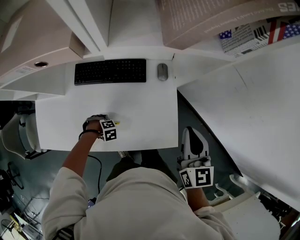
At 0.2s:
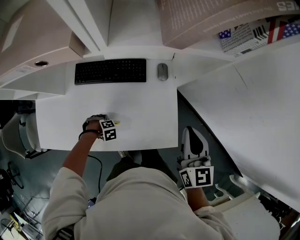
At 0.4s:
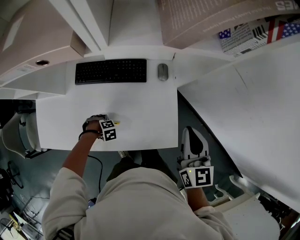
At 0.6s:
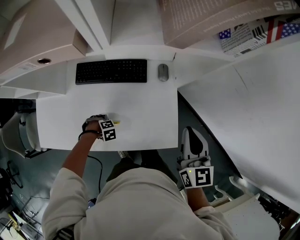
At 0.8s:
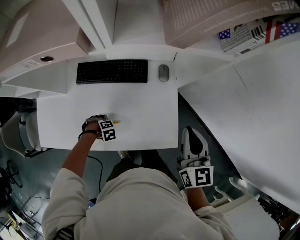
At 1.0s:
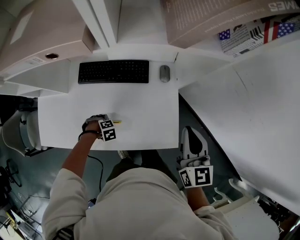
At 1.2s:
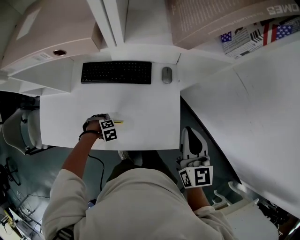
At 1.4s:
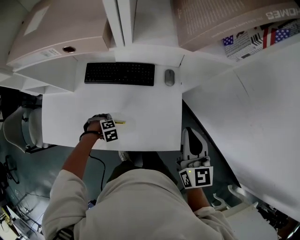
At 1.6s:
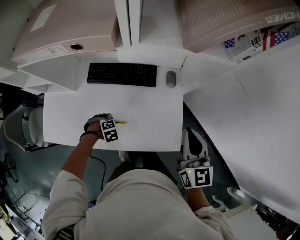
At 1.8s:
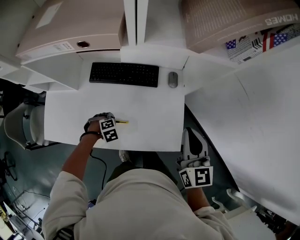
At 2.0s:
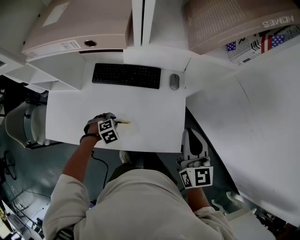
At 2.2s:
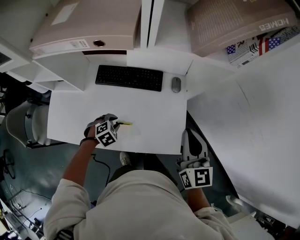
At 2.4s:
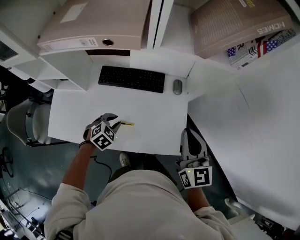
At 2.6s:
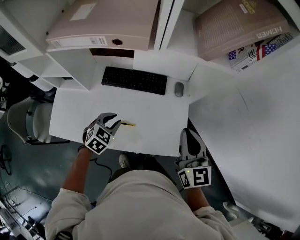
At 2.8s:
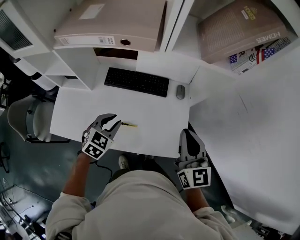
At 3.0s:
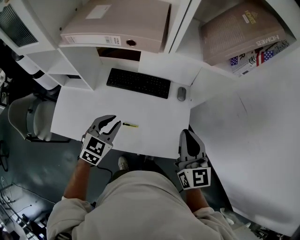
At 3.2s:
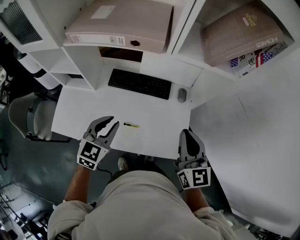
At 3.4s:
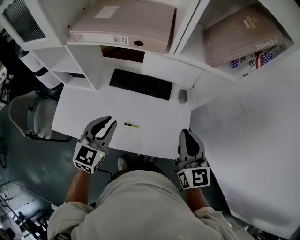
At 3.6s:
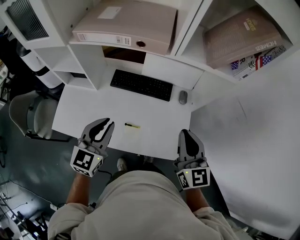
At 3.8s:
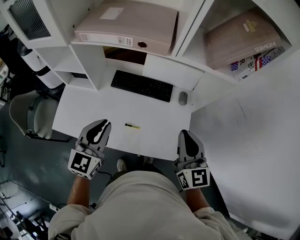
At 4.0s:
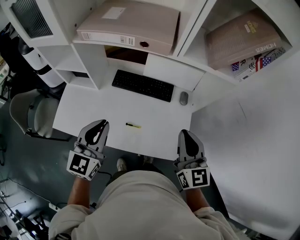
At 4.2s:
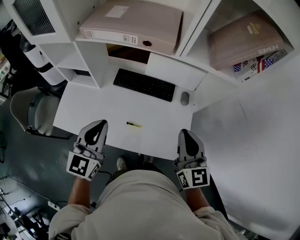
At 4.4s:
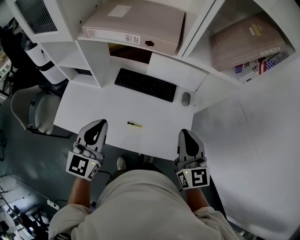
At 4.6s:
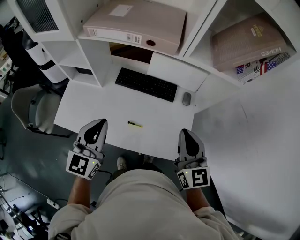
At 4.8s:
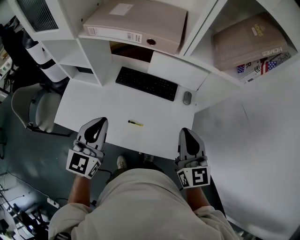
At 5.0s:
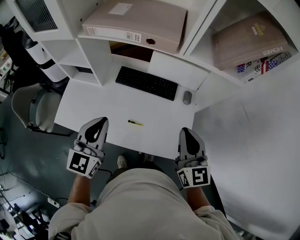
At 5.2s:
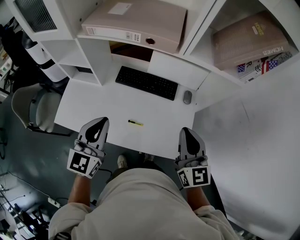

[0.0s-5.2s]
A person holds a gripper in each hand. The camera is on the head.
0.0s to 1.8s: The right gripper changes place by roughly 5 cm; the left gripper is displaced upward by approximately 10 cm.
1.8s to 3.4s: The right gripper changes place by about 10 cm; the left gripper moves upward, roughly 35 cm, and tips its fingers upward by roughly 70 degrees.
3.4s to 5.2s: The left gripper heads upward, covering some 5 cm.

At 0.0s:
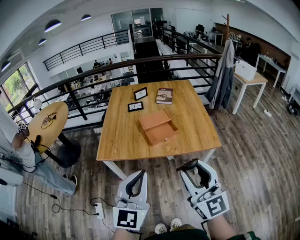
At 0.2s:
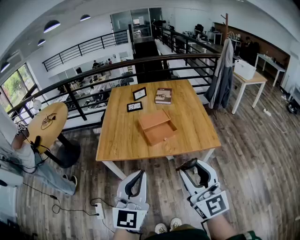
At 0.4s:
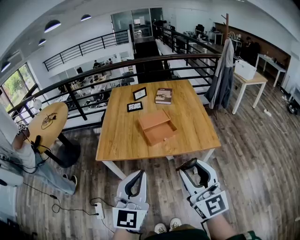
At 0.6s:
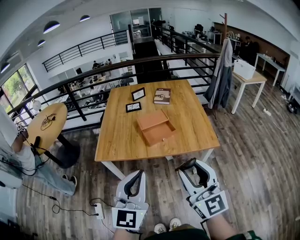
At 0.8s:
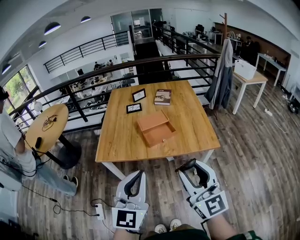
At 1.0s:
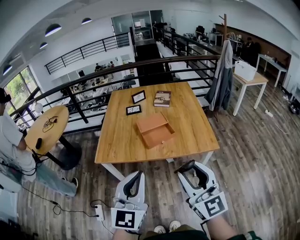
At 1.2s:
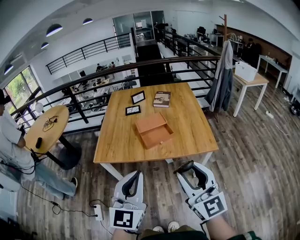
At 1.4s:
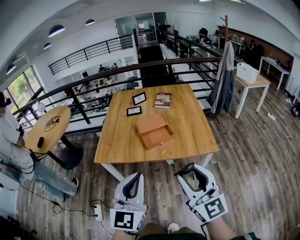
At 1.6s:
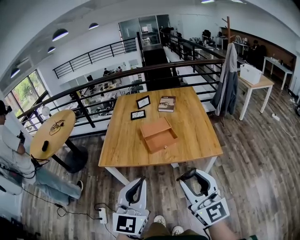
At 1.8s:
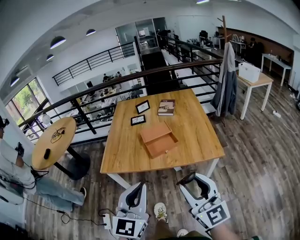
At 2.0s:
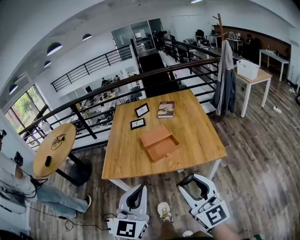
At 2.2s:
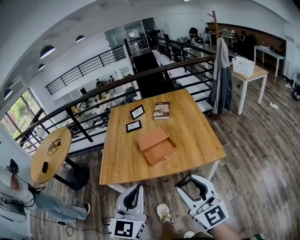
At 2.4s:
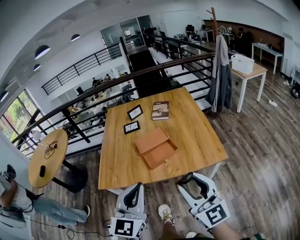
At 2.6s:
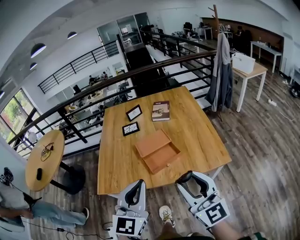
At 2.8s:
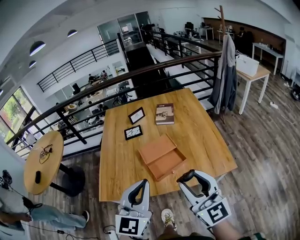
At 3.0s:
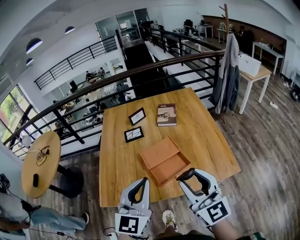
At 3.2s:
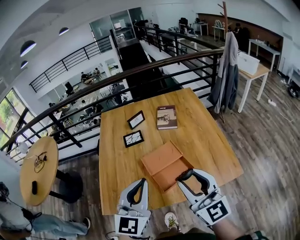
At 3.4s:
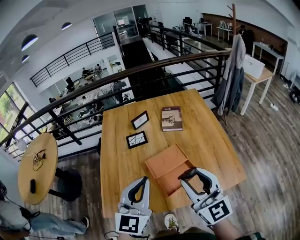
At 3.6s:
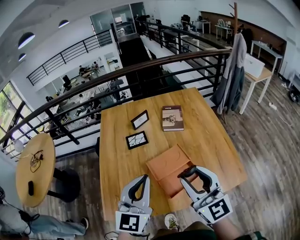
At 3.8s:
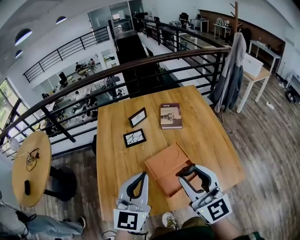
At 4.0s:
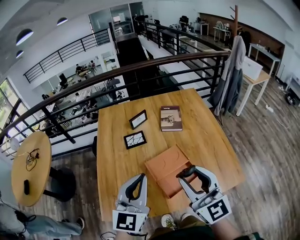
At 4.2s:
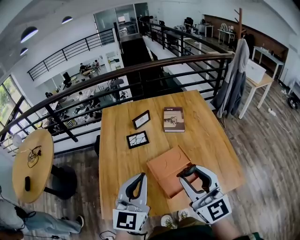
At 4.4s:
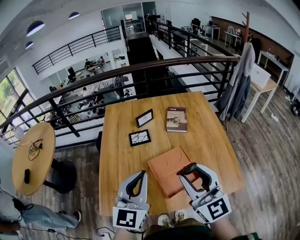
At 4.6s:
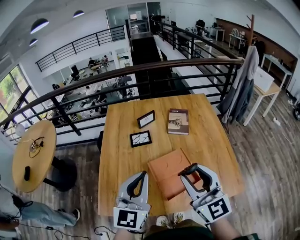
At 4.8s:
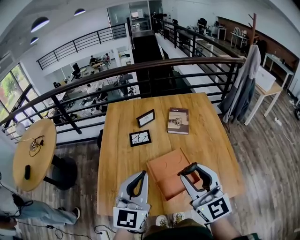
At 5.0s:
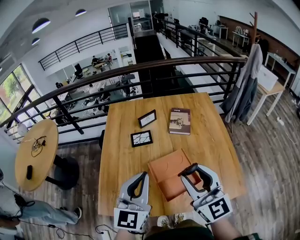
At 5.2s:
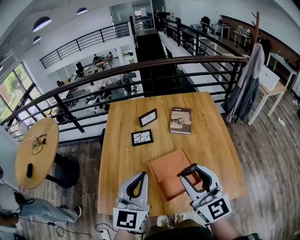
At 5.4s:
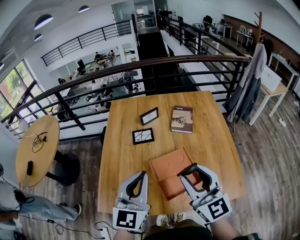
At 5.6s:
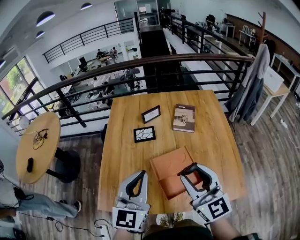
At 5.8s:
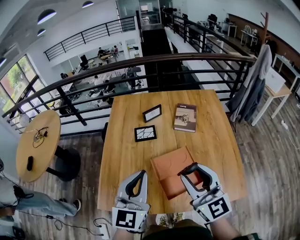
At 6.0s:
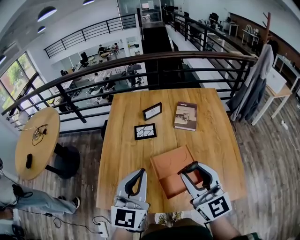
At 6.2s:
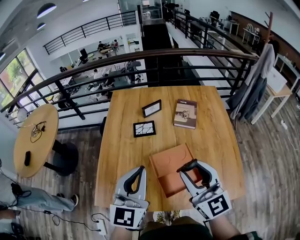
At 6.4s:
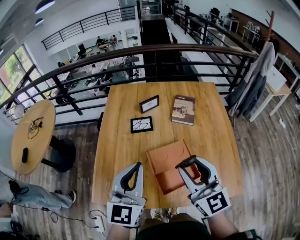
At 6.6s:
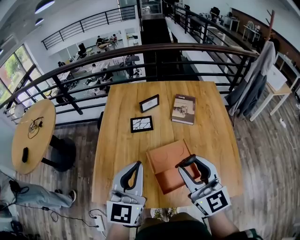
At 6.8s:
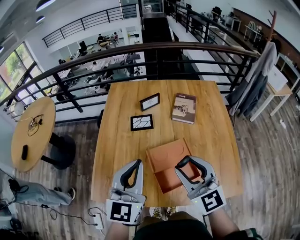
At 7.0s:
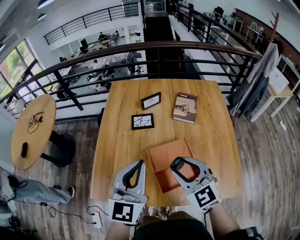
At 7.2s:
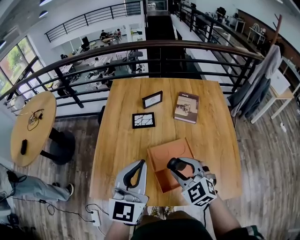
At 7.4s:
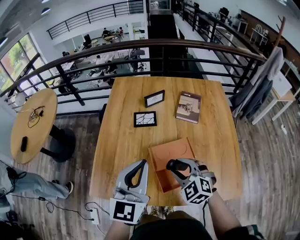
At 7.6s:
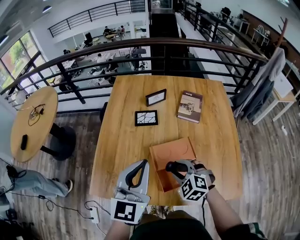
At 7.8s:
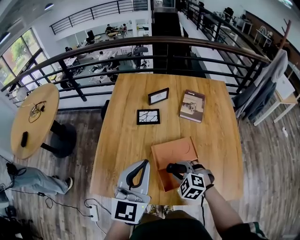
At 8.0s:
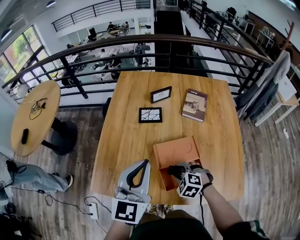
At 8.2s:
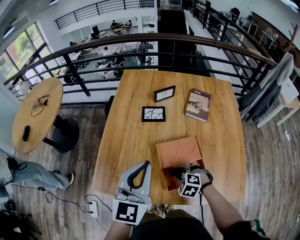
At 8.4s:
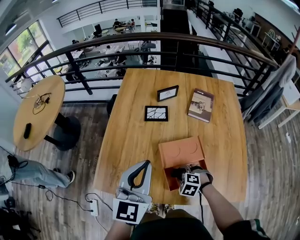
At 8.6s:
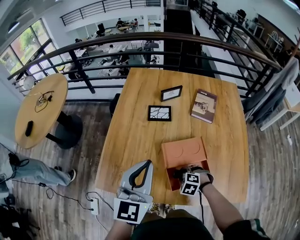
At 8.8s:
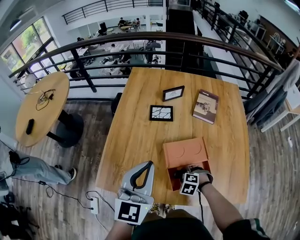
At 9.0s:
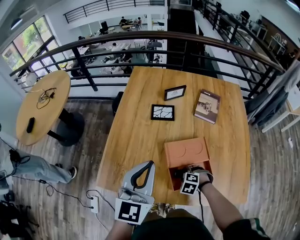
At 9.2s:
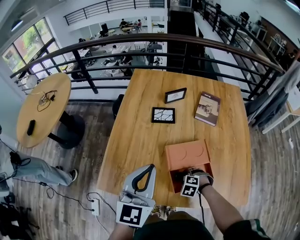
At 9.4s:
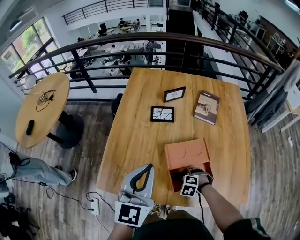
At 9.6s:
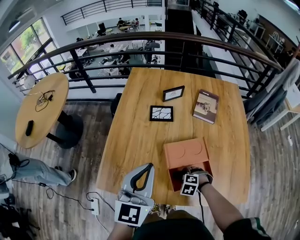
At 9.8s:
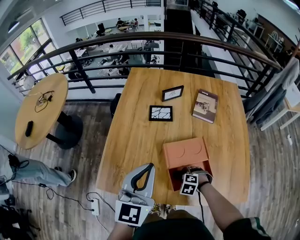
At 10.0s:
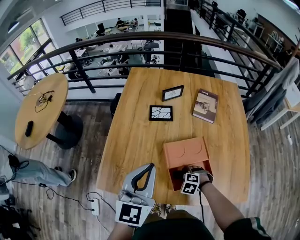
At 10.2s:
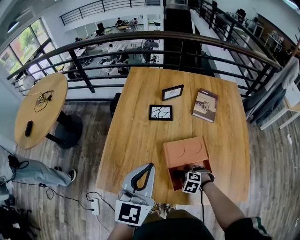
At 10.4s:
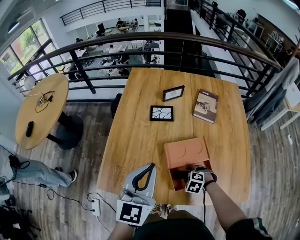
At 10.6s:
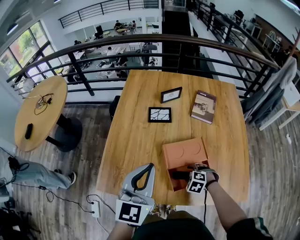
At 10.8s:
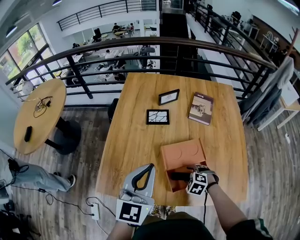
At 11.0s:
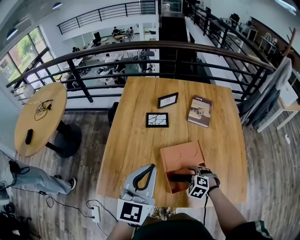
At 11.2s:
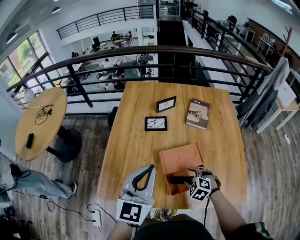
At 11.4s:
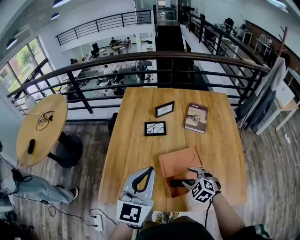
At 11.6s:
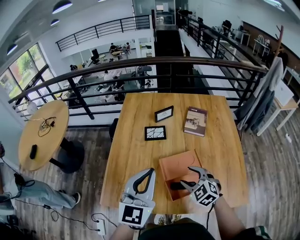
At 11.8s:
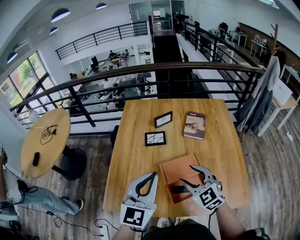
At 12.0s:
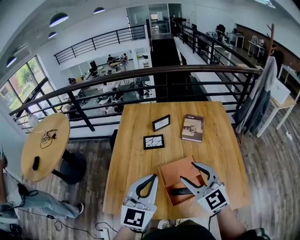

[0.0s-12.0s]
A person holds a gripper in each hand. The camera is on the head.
0.0s to 1.6s: The right gripper goes about 5 cm to the right.
1.6s to 3.0s: The grippers both shift forward by about 30 cm.
3.0s to 4.4s: Both grippers travel together forward and to the left, roughly 15 cm.
4.4s to 6.0s: The right gripper ends up approximately 5 cm from where it was.
6.0s to 7.6s: The right gripper is displaced downward by roughly 20 cm, and tilts its fingers roughly 50 degrees downward.
7.6s to 9.0s: The right gripper shifts approximately 15 cm downward, and turns by roughly 30 degrees.
9.0s to 10.4s: The grippers move only a little.
10.4s to 12.0s: The right gripper is displaced upward by roughly 35 cm, and tilts its fingers about 70 degrees upward, while the left gripper travels upward by approximately 5 cm.

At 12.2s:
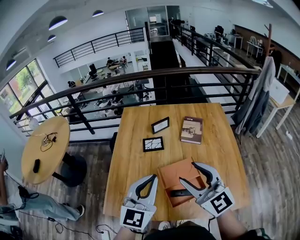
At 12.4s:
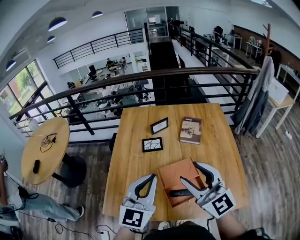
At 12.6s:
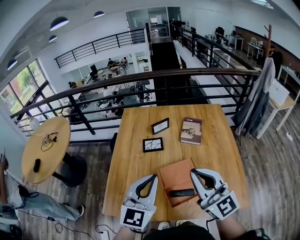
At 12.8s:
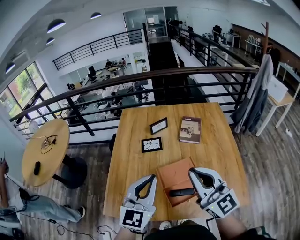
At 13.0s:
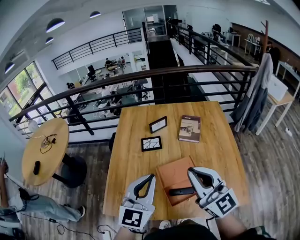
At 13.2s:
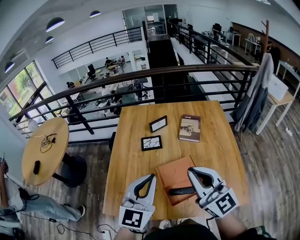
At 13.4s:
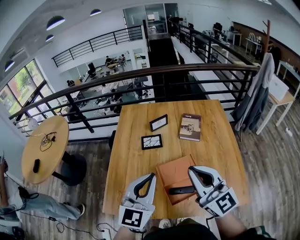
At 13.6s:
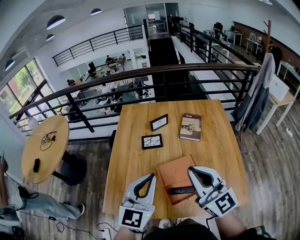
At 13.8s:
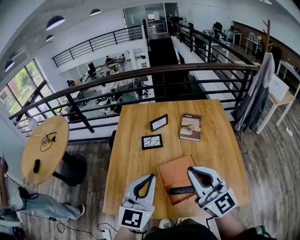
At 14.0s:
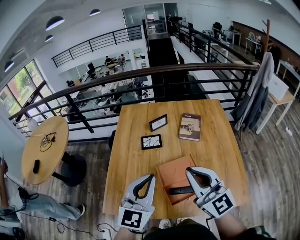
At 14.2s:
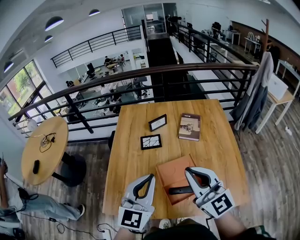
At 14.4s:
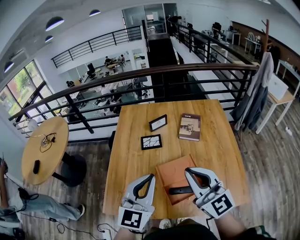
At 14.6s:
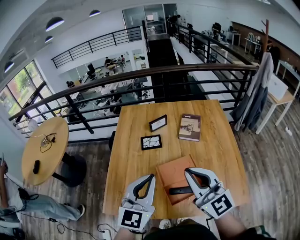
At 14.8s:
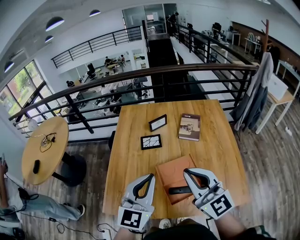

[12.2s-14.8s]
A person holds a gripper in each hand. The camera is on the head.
12.2s to 13.4s: The right gripper closes.
13.4s to 14.8s: The grippers move only a little.

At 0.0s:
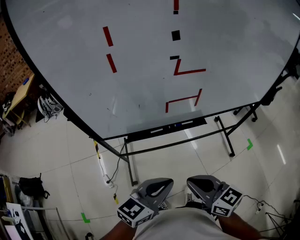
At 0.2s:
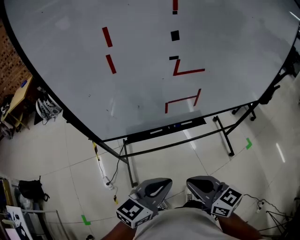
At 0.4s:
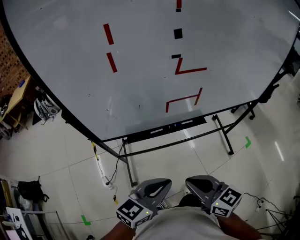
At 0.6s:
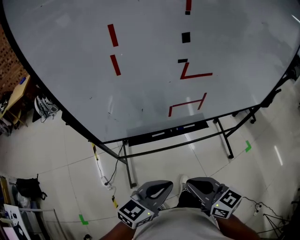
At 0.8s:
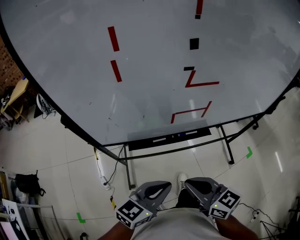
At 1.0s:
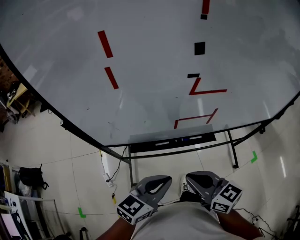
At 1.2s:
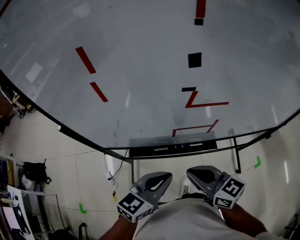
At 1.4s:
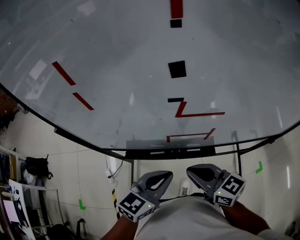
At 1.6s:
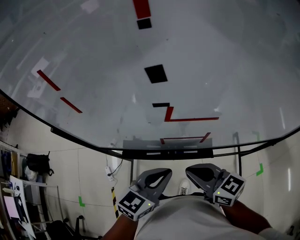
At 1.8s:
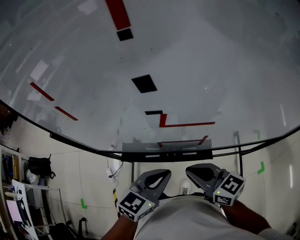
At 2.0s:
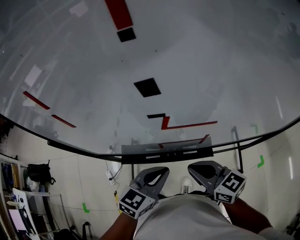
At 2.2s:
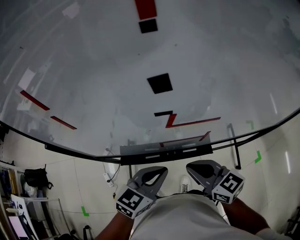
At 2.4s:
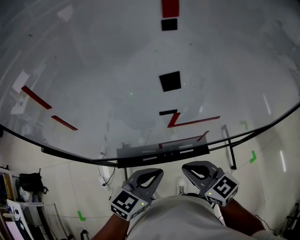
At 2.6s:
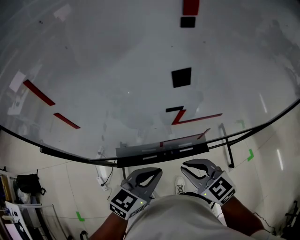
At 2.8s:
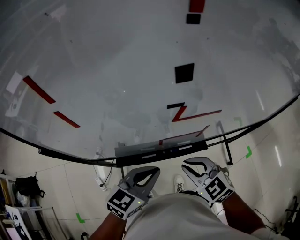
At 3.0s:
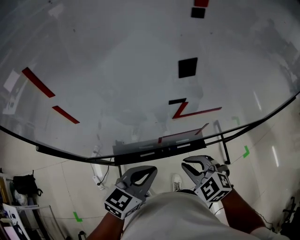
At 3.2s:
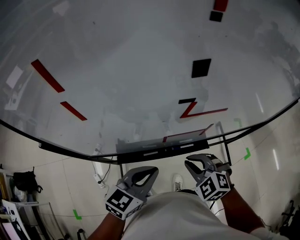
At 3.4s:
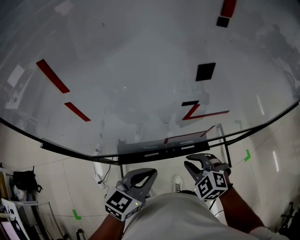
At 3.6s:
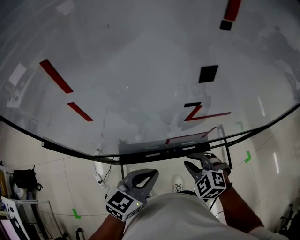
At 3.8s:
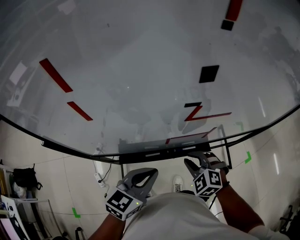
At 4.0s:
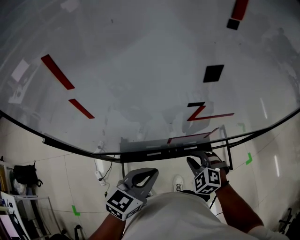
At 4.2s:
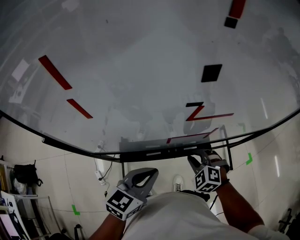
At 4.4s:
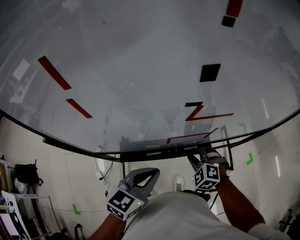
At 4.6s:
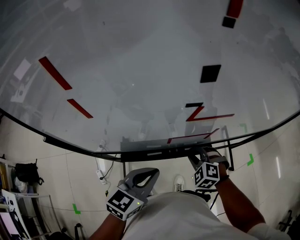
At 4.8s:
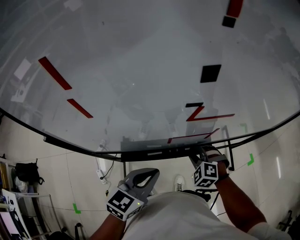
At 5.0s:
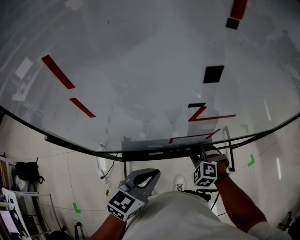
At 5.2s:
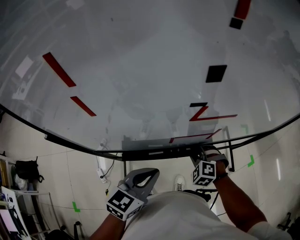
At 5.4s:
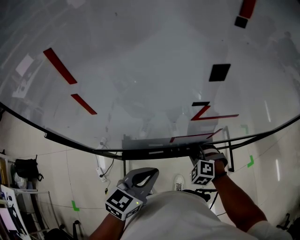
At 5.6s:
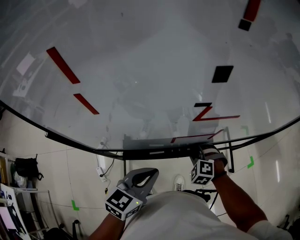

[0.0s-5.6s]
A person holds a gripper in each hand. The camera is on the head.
0.0s to 1.4s: Both grippers move forward, approximately 20 cm.
1.4s to 2.8s: The right gripper shifts by about 5 cm, and swivels roughly 40 degrees.
2.8s to 4.2s: The right gripper moves downward, approximately 10 cm, and swivels some 30 degrees.
4.2s to 5.6s: The right gripper shifts by approximately 5 cm.
